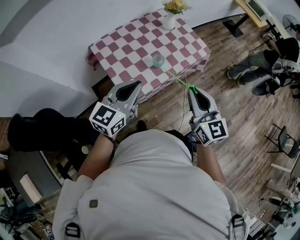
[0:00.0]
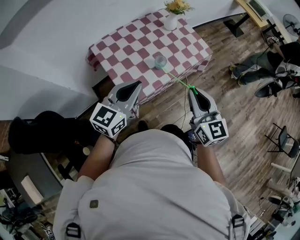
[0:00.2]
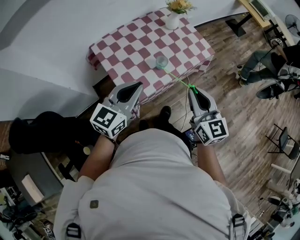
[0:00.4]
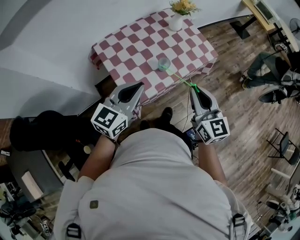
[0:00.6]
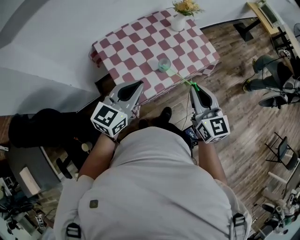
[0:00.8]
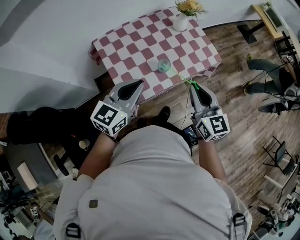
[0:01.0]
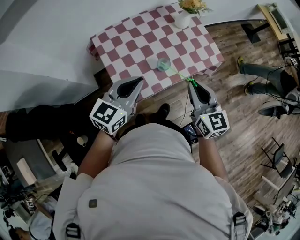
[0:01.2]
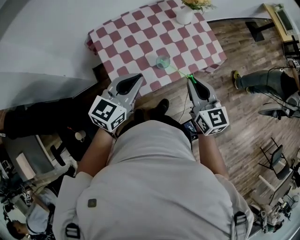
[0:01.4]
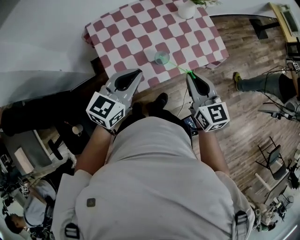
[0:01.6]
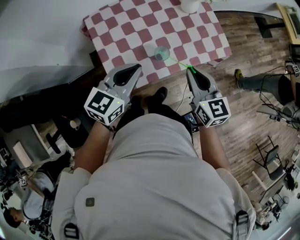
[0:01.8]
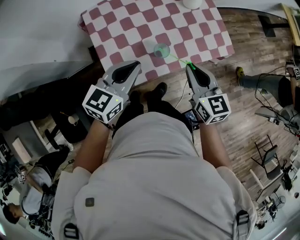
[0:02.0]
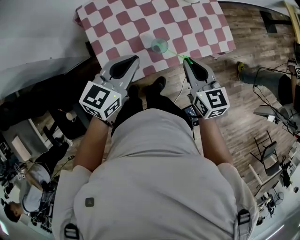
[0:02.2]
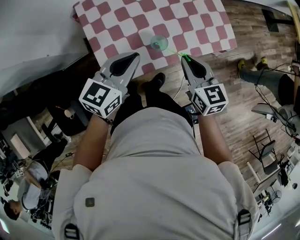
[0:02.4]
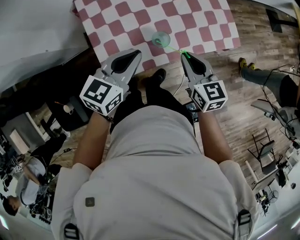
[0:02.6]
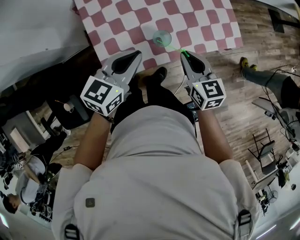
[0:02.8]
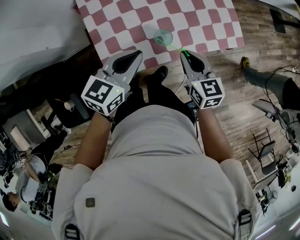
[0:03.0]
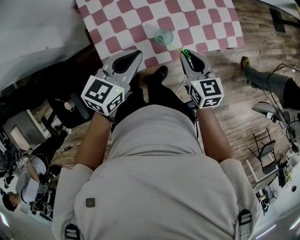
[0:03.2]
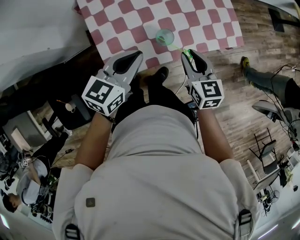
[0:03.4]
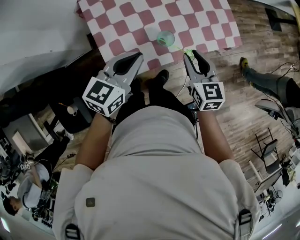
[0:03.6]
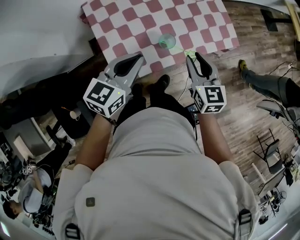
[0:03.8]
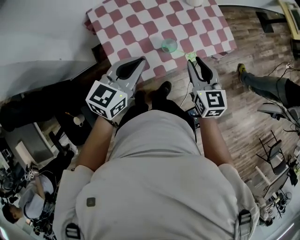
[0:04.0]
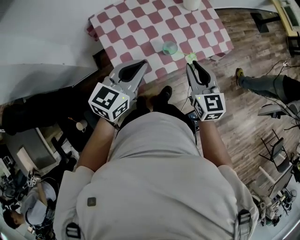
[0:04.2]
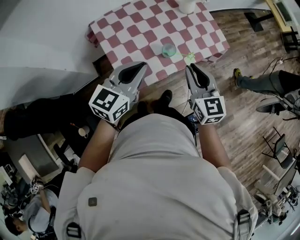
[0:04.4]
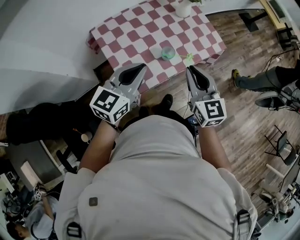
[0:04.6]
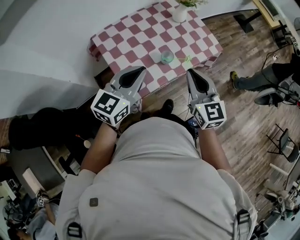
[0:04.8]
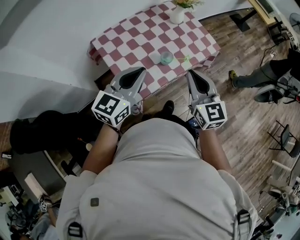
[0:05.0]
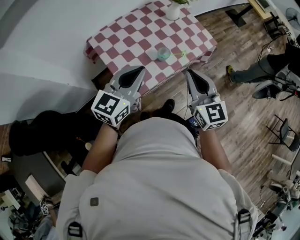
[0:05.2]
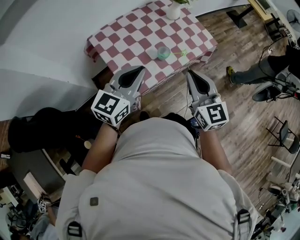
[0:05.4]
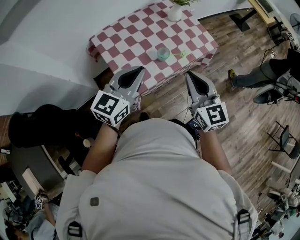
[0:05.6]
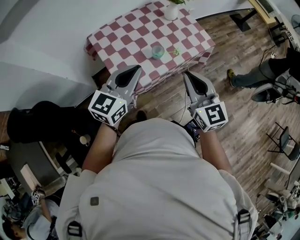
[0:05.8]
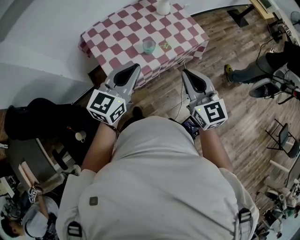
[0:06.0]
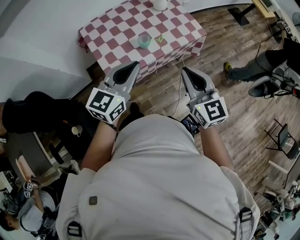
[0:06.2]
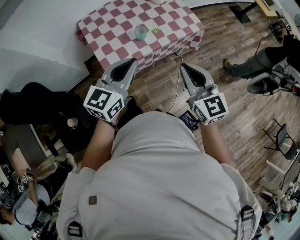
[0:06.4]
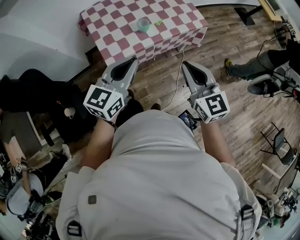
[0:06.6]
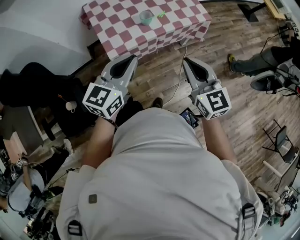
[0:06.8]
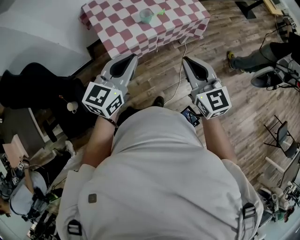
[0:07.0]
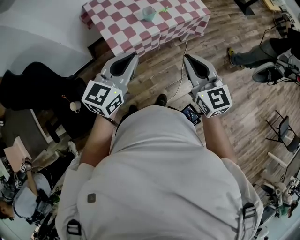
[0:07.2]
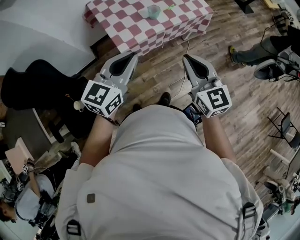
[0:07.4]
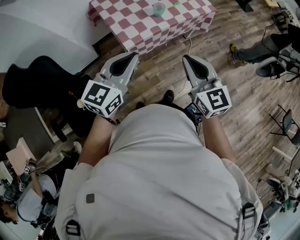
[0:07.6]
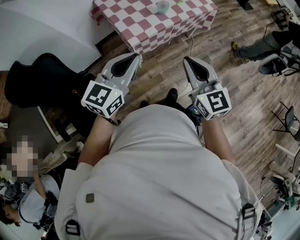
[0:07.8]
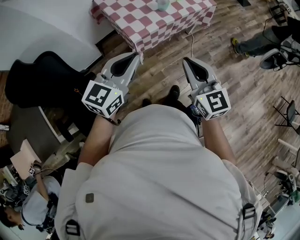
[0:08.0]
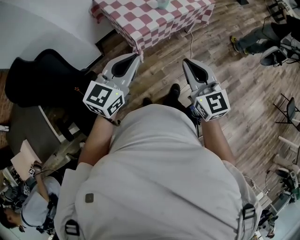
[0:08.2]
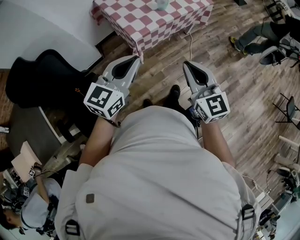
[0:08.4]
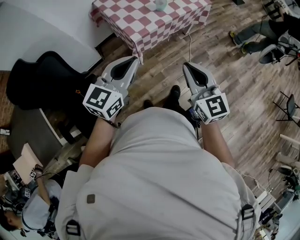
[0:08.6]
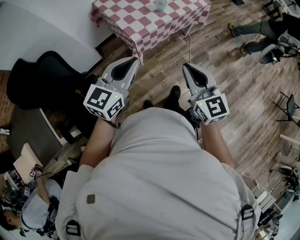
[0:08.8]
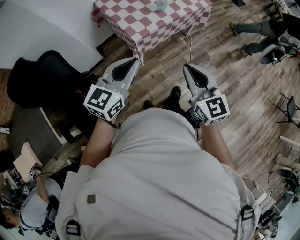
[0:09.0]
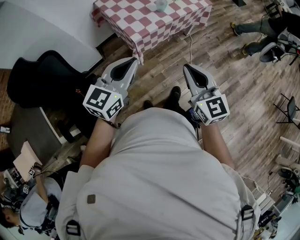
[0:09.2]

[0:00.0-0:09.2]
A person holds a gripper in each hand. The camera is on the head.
0.0 to 1.6 s: Both grippers travel together forward and downward, about 20 cm.
1.6 to 3.0 s: The left gripper heads downward, covering about 10 cm; the right gripper goes some 15 cm downward.
3.0 to 4.6 s: The right gripper shifts about 20 cm upward and backward, rotates approximately 30 degrees, and opens, then closes once more. Meanwhile the left gripper travels upward, backward and to the left by roughly 15 cm.
4.6 to 6.2 s: Both grippers travel together to the right and backward, approximately 15 cm.
6.2 to 7.6 s: Both grippers travel together backward and to the left, approximately 20 cm.
7.6 to 9.2 s: The grippers both shift backward by roughly 10 cm.

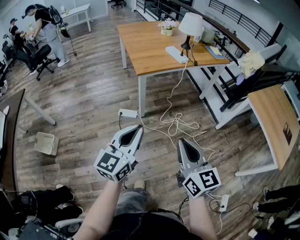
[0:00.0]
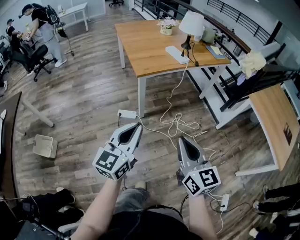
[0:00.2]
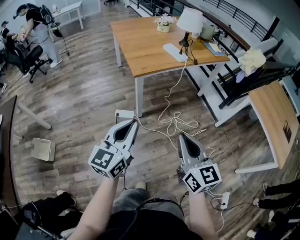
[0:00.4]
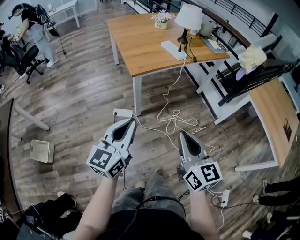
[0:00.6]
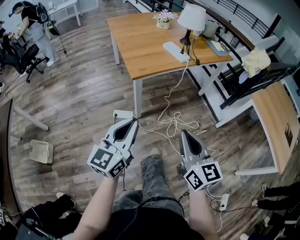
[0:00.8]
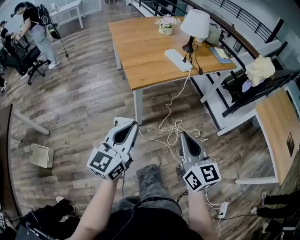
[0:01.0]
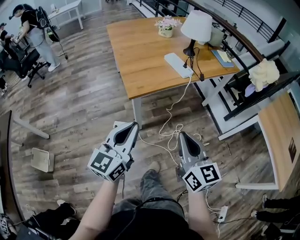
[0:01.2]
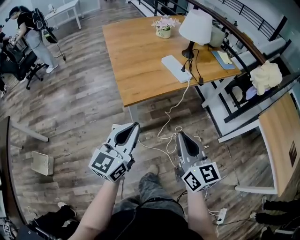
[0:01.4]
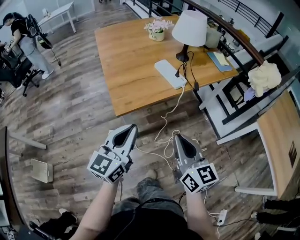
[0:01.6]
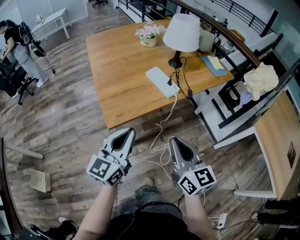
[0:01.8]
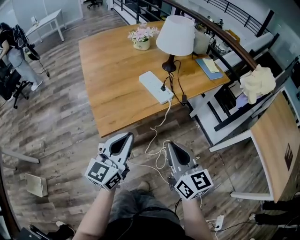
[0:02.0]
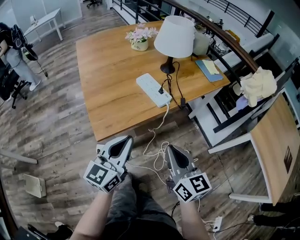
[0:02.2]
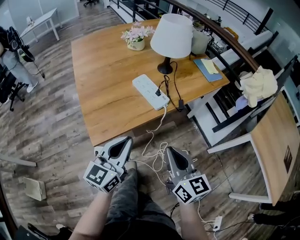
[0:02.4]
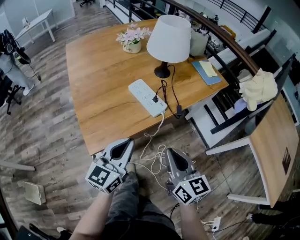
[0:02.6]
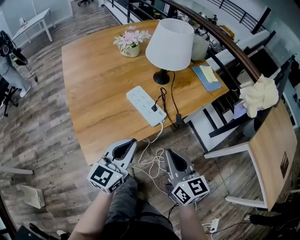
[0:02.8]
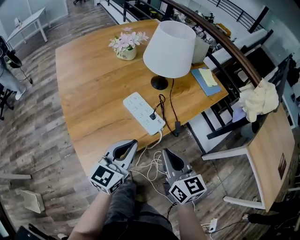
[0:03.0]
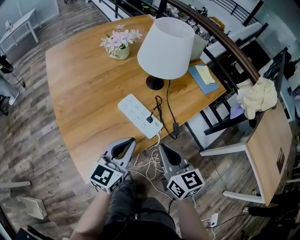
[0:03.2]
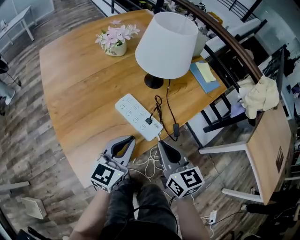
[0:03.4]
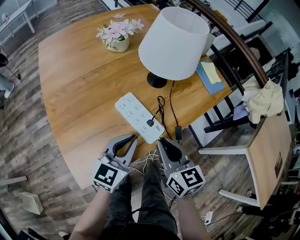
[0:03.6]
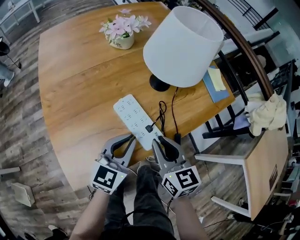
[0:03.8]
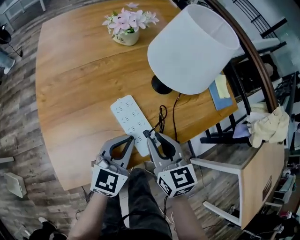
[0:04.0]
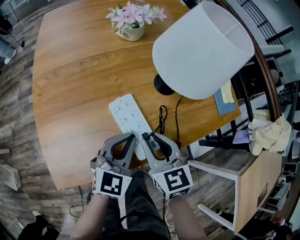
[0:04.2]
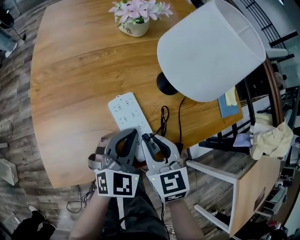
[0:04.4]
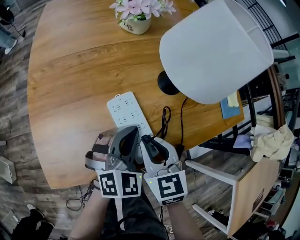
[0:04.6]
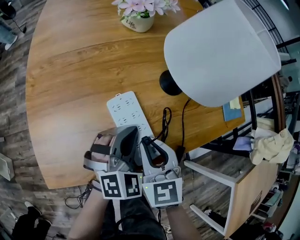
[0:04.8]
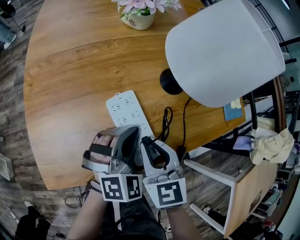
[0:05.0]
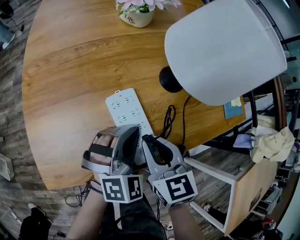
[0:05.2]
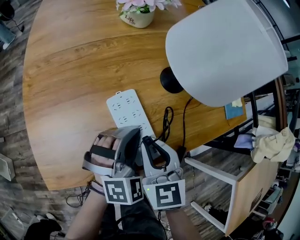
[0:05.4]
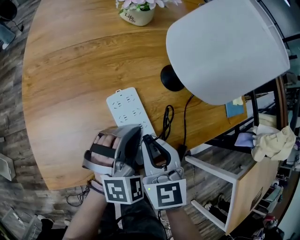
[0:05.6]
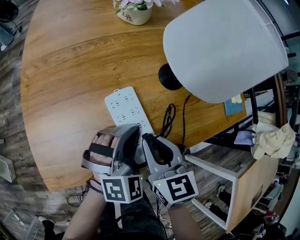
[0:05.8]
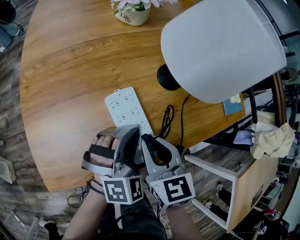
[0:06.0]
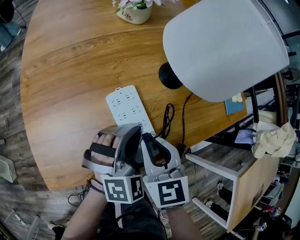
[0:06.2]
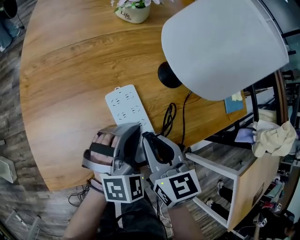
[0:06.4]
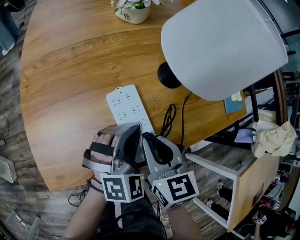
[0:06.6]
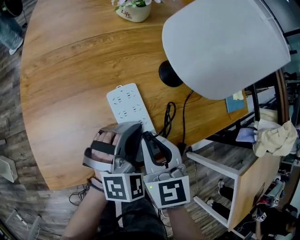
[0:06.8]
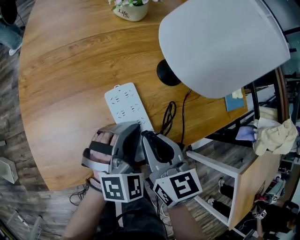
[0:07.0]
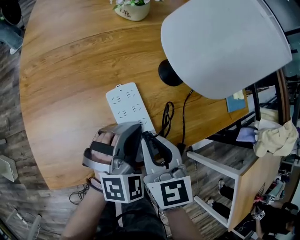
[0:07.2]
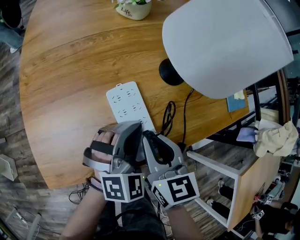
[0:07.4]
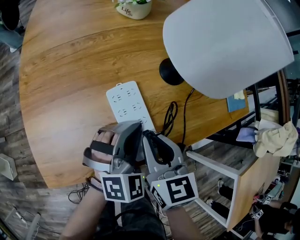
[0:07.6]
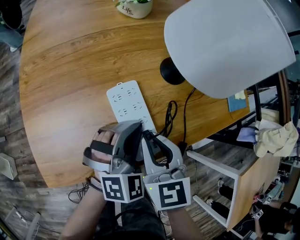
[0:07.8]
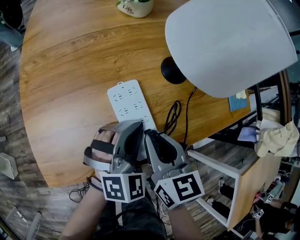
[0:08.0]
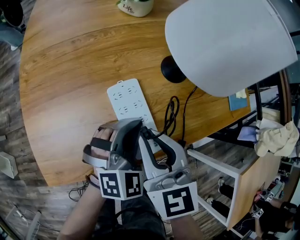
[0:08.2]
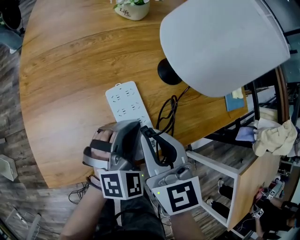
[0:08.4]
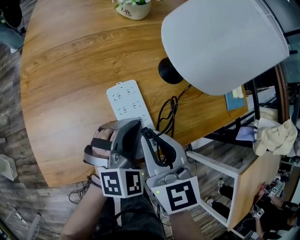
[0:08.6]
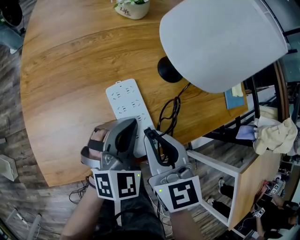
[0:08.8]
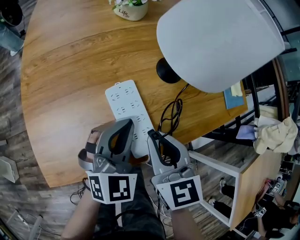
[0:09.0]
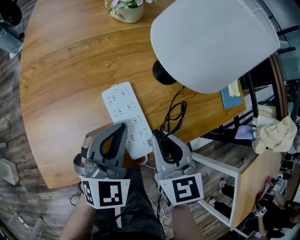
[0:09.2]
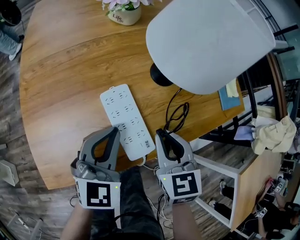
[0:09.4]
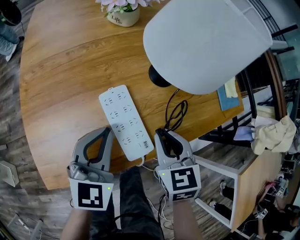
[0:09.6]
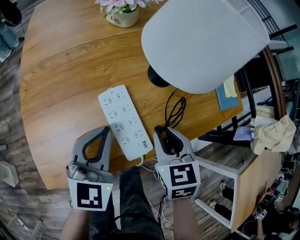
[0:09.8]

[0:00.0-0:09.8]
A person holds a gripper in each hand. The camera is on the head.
0.0 to 1.4 s: The two grippers go some 30 cm forward.
1.4 to 2.8 s: The right gripper goes approximately 25 cm forward. Meanwhile the left gripper travels forward and to the right by some 25 cm.
2.8 to 4.2 s: The two grippers go approximately 20 cm forward and downward. The right gripper swivels roughly 30 degrees, and opens its fingers, while the left gripper changes its angle by some 20 degrees.
4.2 to 5.6 s: The left gripper swivels approximately 40 degrees.
5.6 to 7.0 s: The grippers make only small movements.
7.0 to 8.4 s: The right gripper moves about 5 cm.
8.4 to 9.8 s: The left gripper goes about 10 cm to the left and upward, and rotates roughly 30 degrees; the right gripper goes approximately 10 cm to the right and downward.

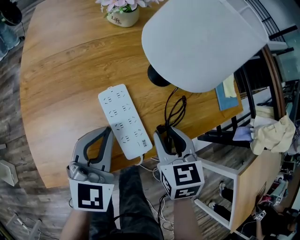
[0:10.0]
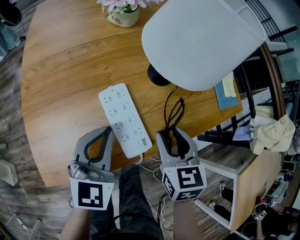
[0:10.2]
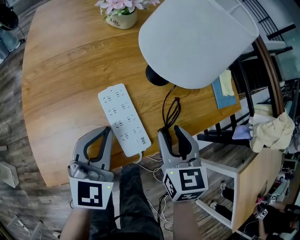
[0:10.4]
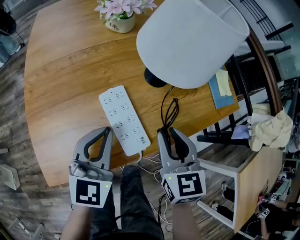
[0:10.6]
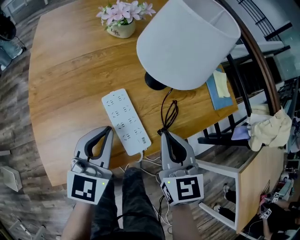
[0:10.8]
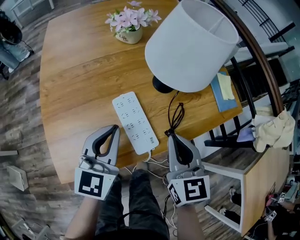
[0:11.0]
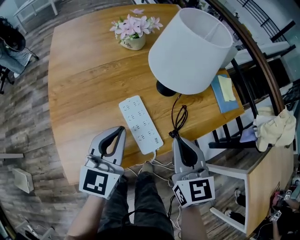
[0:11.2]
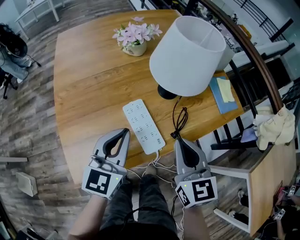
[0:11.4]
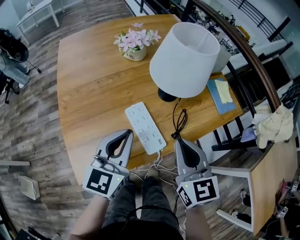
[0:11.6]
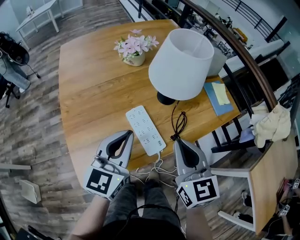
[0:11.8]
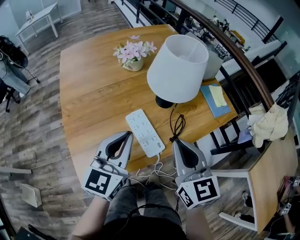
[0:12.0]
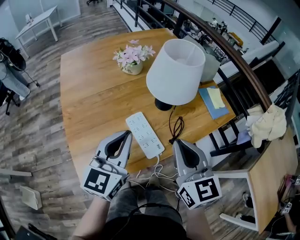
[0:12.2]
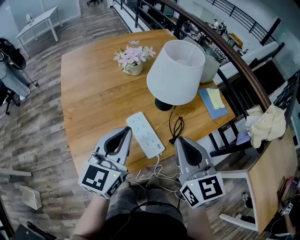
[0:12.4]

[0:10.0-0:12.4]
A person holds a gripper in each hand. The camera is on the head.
10.0 to 11.2 s: The right gripper heads upward, covering some 10 cm, rotates about 20 degrees, and closes up, while the left gripper shifts approximately 5 cm upward.
11.2 to 12.4 s: The two grippers go some 10 cm upward.

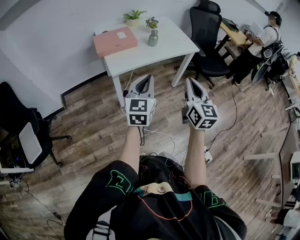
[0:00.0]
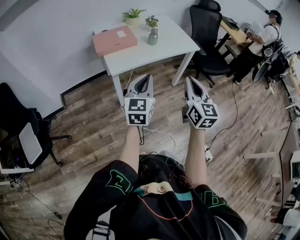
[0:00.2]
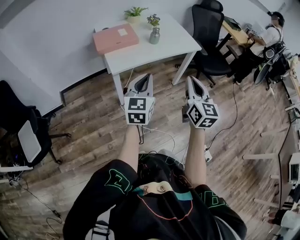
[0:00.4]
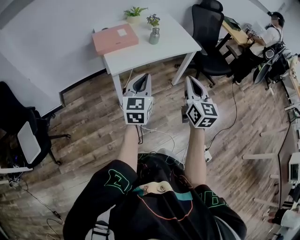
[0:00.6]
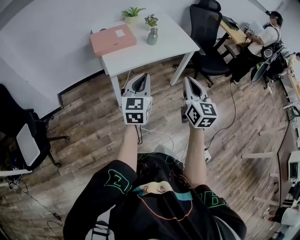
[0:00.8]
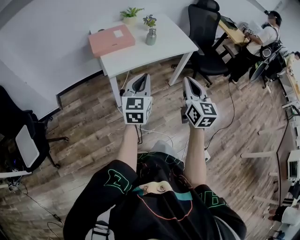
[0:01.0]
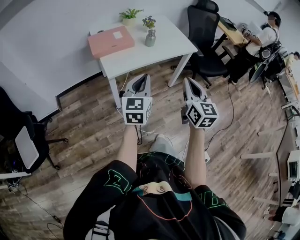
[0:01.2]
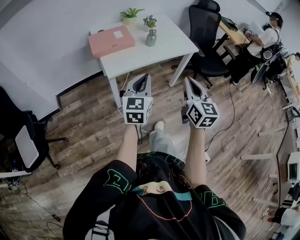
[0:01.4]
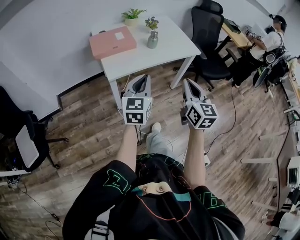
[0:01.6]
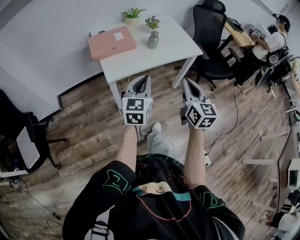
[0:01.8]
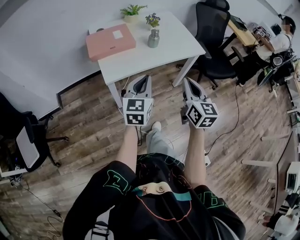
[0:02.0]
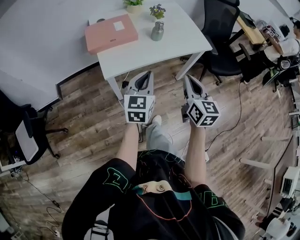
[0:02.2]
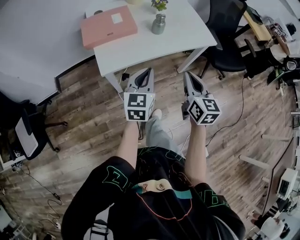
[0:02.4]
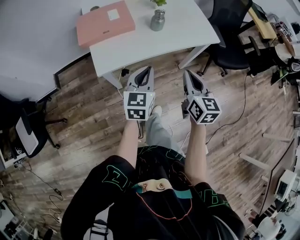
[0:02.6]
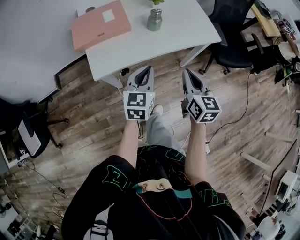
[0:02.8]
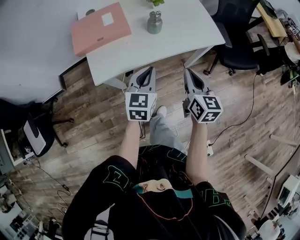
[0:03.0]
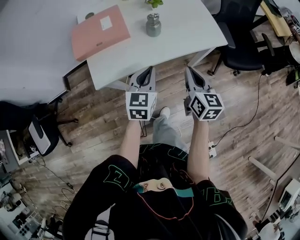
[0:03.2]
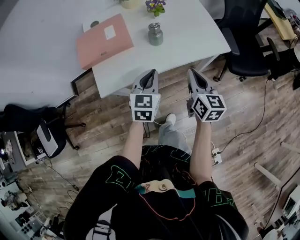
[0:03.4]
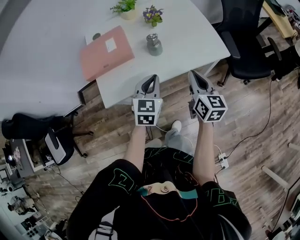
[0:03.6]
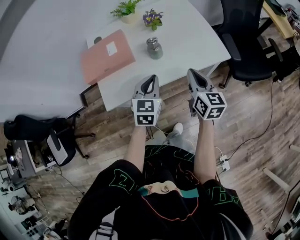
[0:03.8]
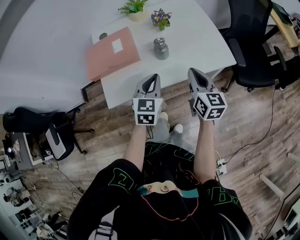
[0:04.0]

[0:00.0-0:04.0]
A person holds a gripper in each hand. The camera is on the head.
0.0 to 1.4 s: The left gripper moves some 5 cm.
1.4 to 2.6 s: Both grippers move forward and downward, roughly 20 cm.
2.6 to 4.0 s: Both grippers travel together forward, approximately 15 cm.
